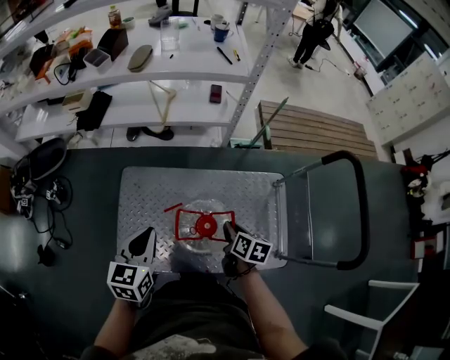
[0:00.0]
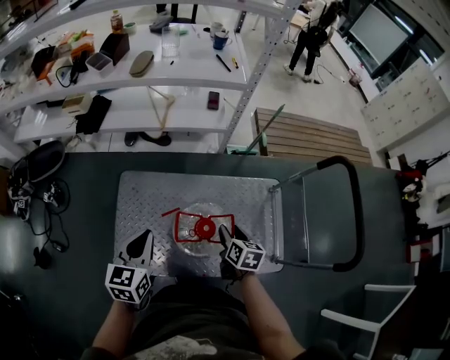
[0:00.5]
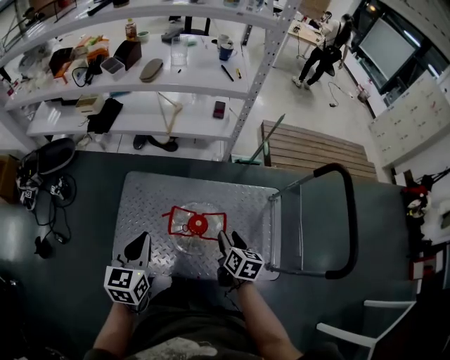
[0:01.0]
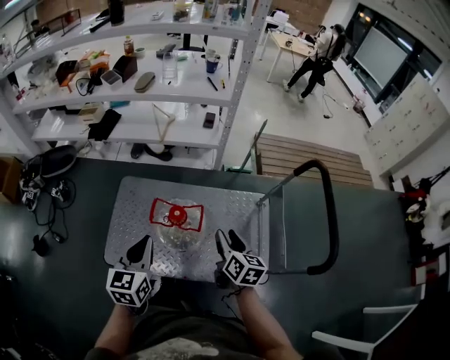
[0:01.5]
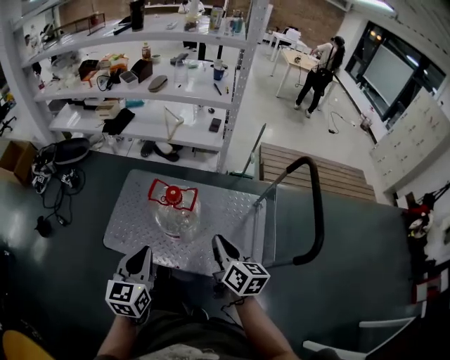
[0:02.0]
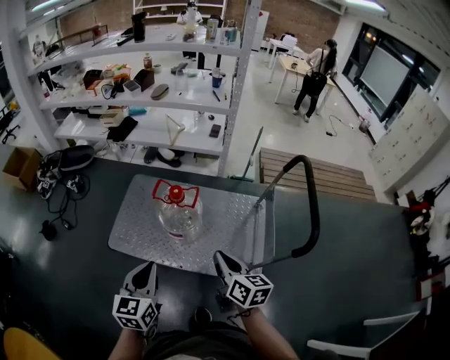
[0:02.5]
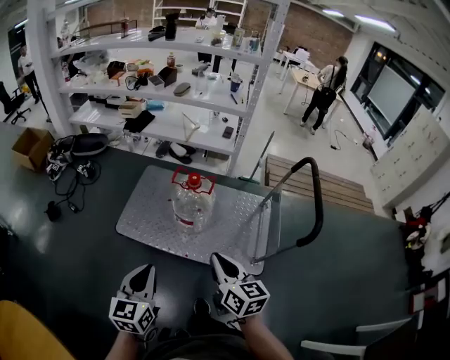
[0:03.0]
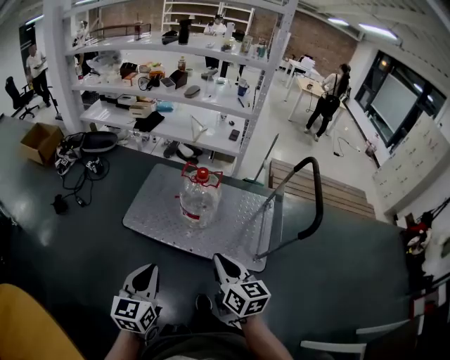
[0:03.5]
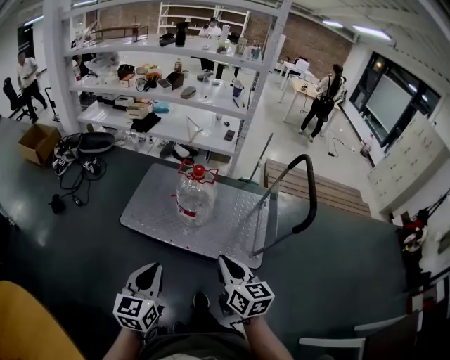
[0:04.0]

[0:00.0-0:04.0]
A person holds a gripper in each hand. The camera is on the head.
0:00.0 to 0:02.0: The right gripper moves backward, upward and to the right, approximately 30 cm, rotates roughly 30 degrees, and opens, then closes once more. The left gripper is displaced backward and to the right by approximately 30 cm.
0:02.0 to 0:04.0: The grippers both shift backward by some 30 cm.

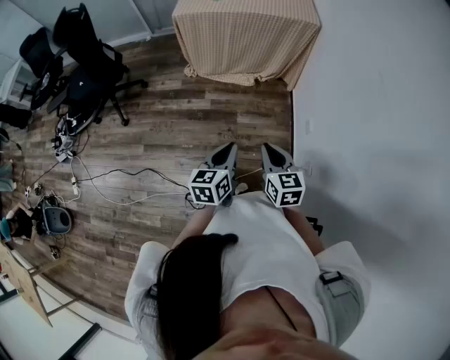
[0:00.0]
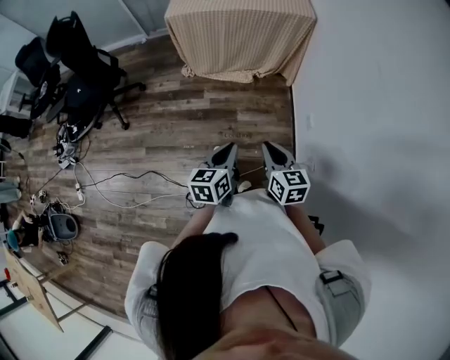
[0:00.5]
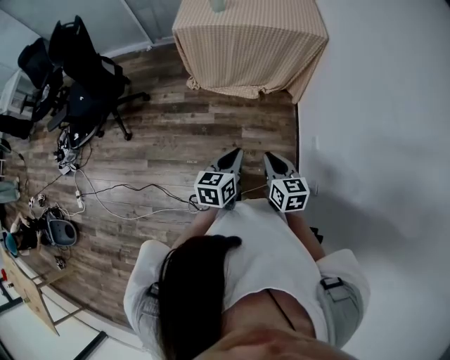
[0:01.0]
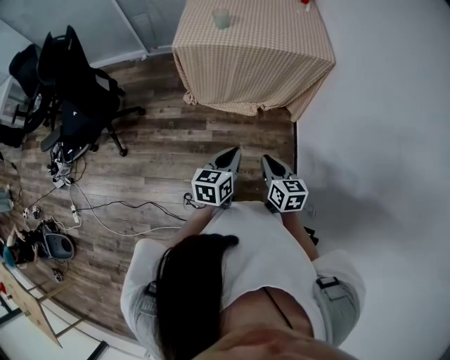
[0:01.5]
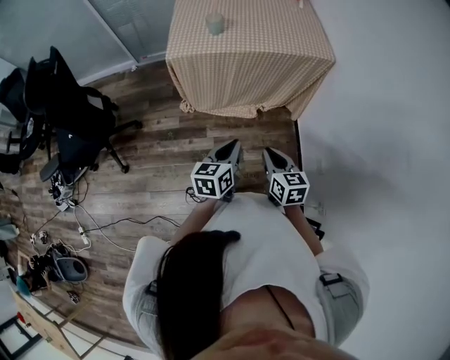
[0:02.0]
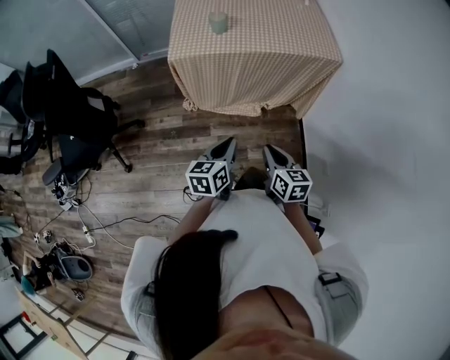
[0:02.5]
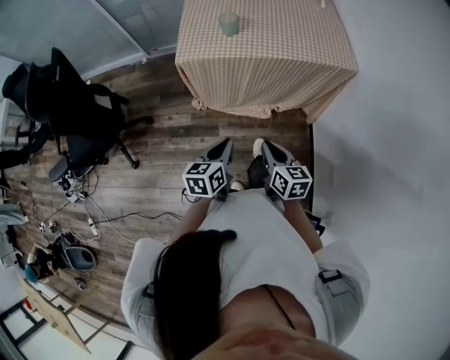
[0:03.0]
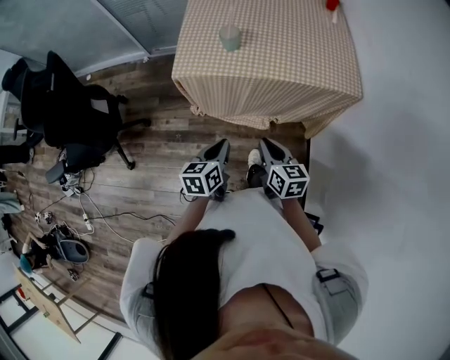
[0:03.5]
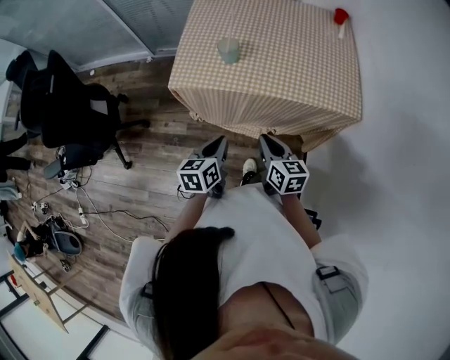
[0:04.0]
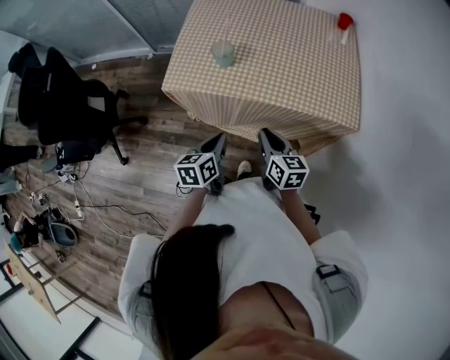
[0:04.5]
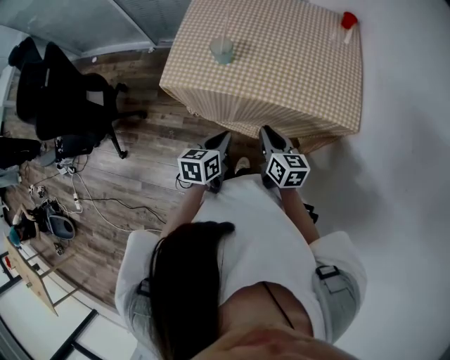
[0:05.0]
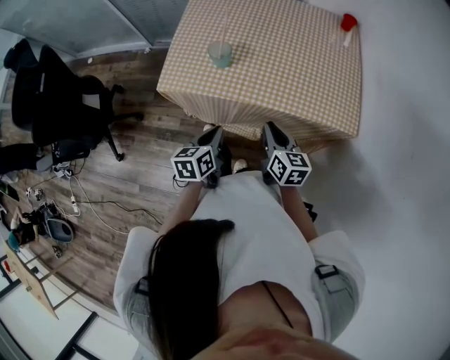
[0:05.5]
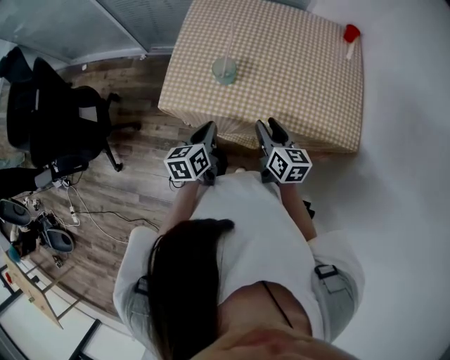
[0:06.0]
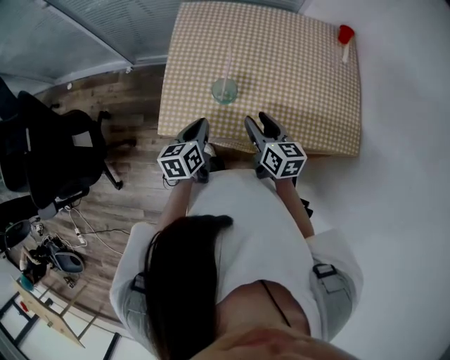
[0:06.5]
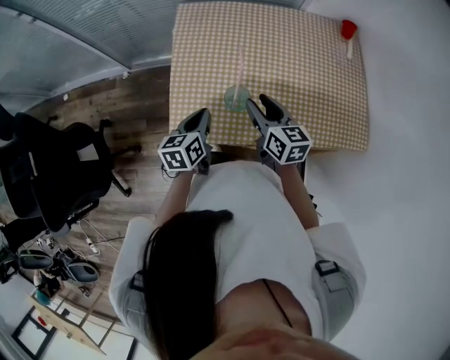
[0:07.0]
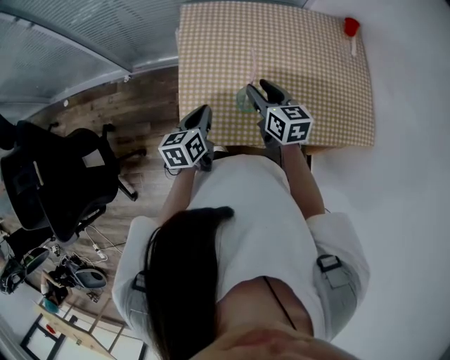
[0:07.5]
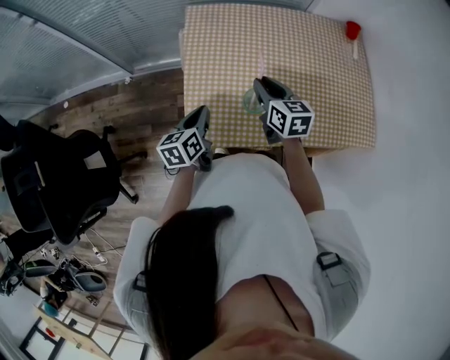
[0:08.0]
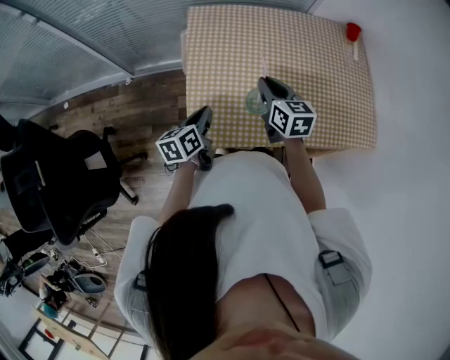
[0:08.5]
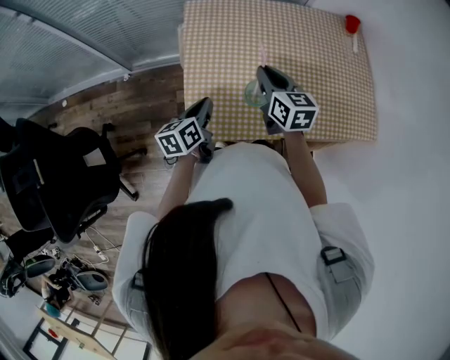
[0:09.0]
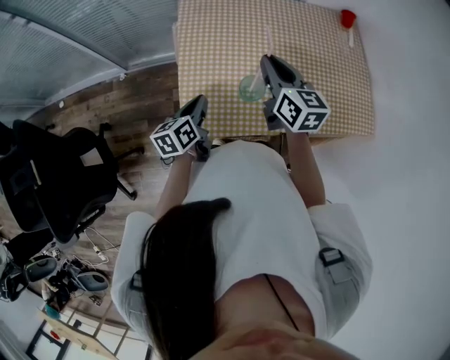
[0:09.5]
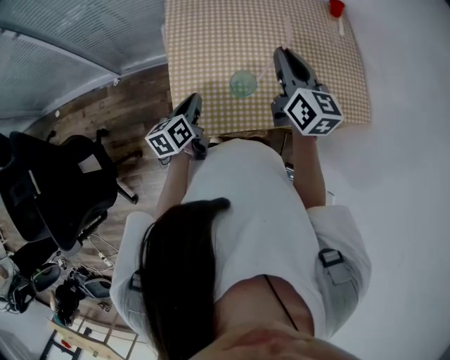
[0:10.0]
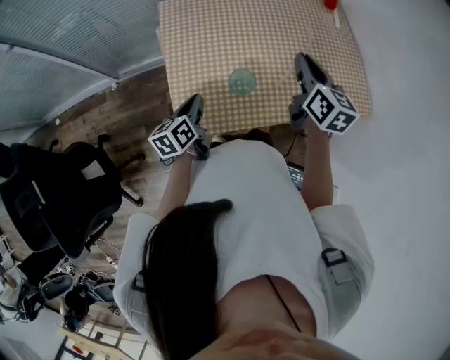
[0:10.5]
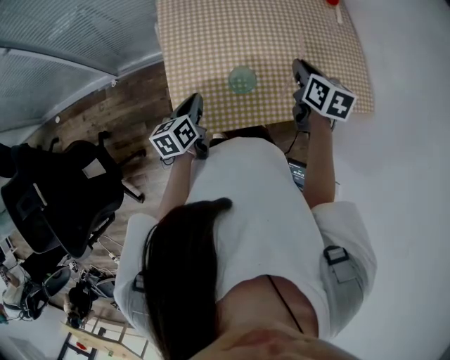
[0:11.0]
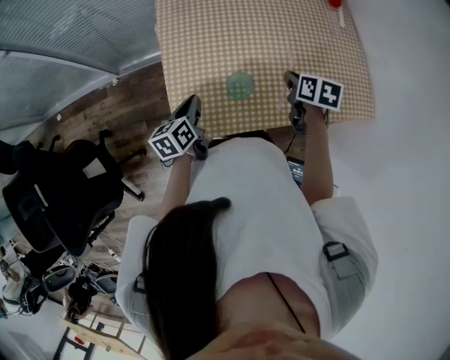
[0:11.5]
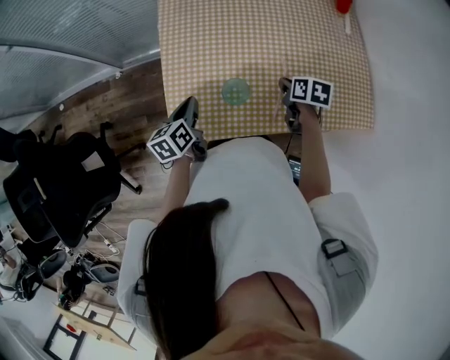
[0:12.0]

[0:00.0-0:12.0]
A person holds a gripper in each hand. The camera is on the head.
0:00.0 to 0:02.0: The two grippers go some 30 cm forward.
0:02.0 to 0:04.0: Both grippers travel together forward, roughly 25 cm.
0:04.0 to 0:06.0: The grippers both shift forward by about 15 cm. The right gripper opens.
0:06.0 to 0:08.0: Both grippers travel together forward and to the left, approximately 25 cm.
0:08.0 to 0:10.0: The right gripper shifts roughly 15 cm upward and to the right, and swivels about 20 degrees.
0:10.0 to 0:12.0: The right gripper travels downward by roughly 20 cm, and tilts its fingers approximately 50 degrees downward.

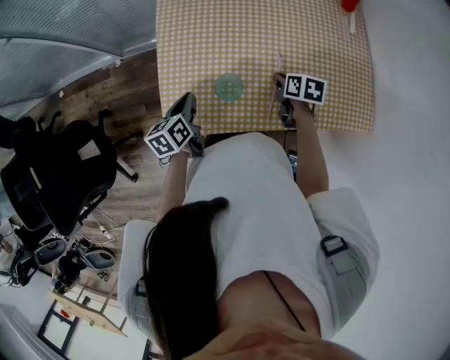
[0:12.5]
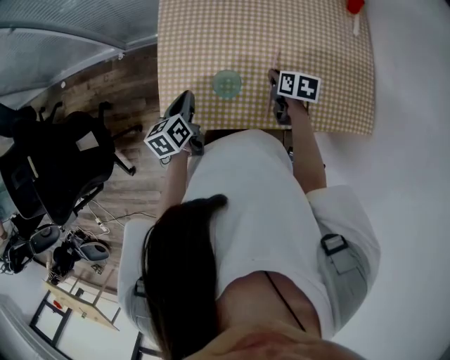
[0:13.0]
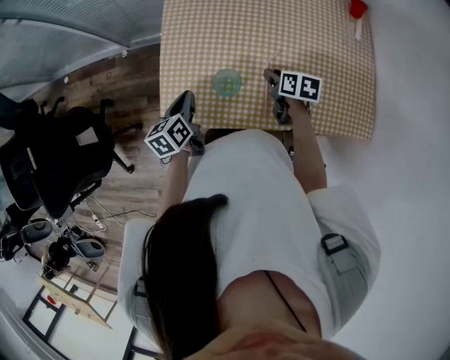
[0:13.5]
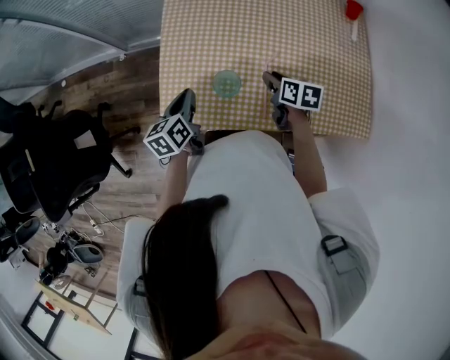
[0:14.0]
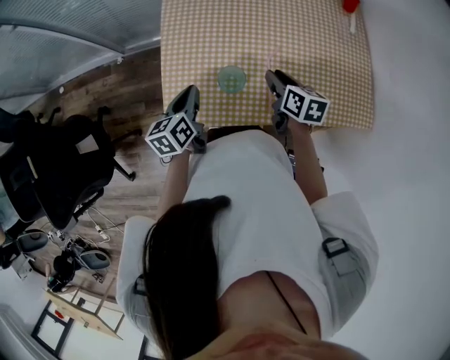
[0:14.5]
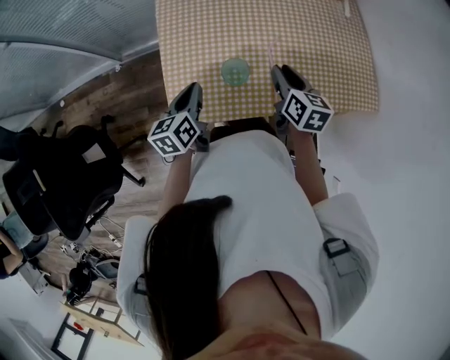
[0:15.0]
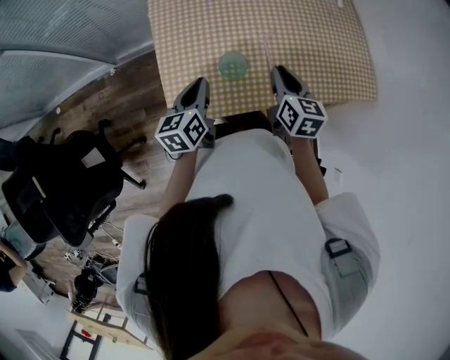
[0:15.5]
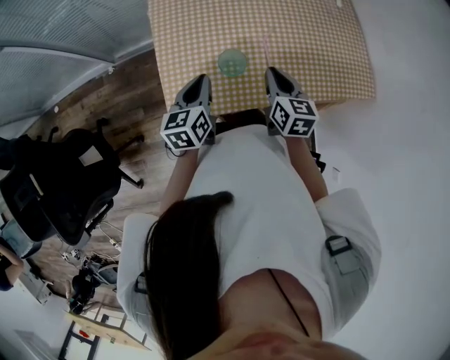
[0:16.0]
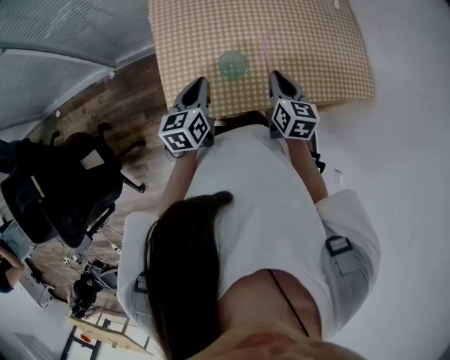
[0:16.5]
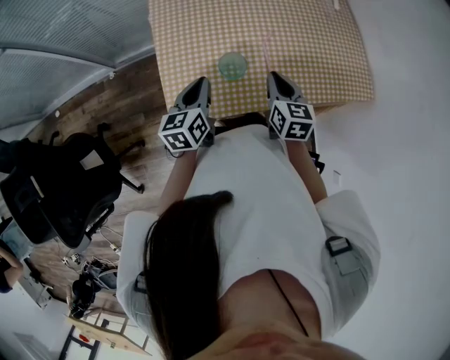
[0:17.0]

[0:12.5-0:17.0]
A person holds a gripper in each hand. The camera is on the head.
0:12.5 to 0:14.5: The right gripper travels upward by roughly 5 cm.
0:14.5 to 0:17.0: The right gripper travels backward by roughly 5 cm, and swivels some 20 degrees.

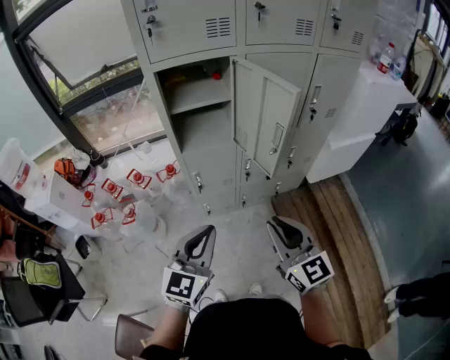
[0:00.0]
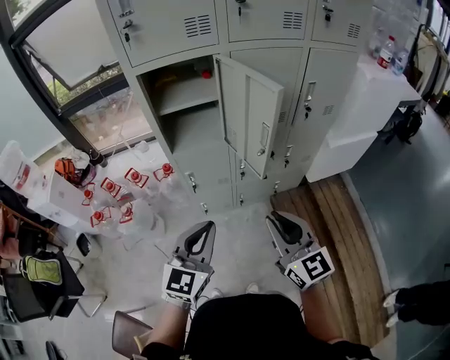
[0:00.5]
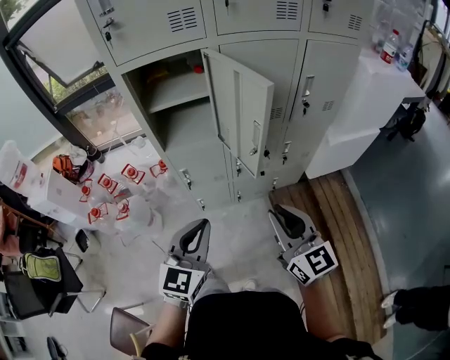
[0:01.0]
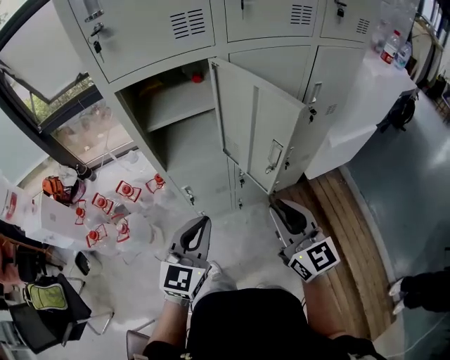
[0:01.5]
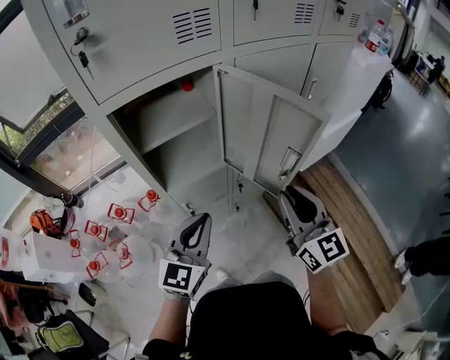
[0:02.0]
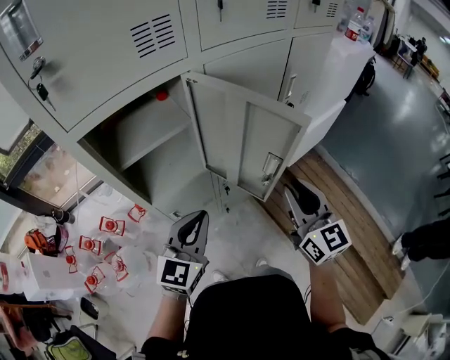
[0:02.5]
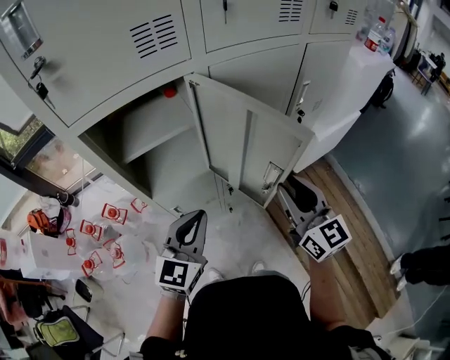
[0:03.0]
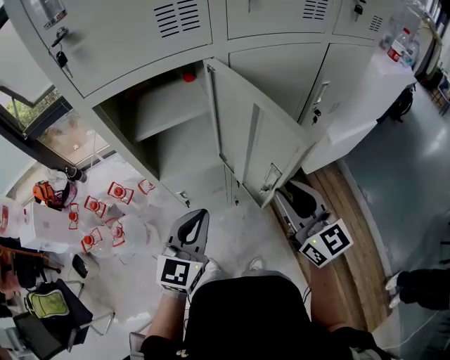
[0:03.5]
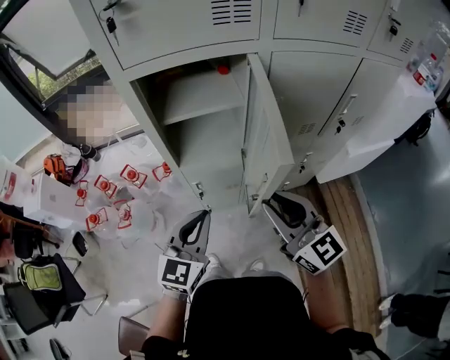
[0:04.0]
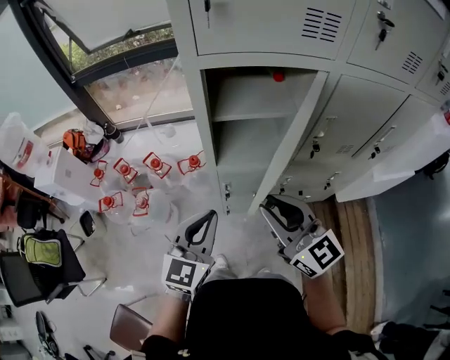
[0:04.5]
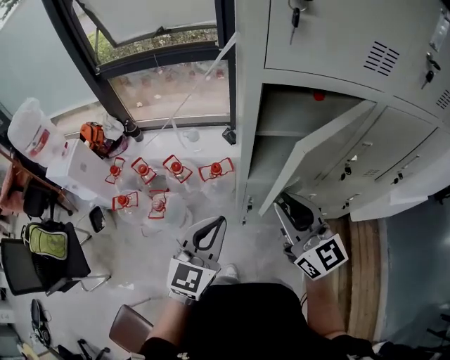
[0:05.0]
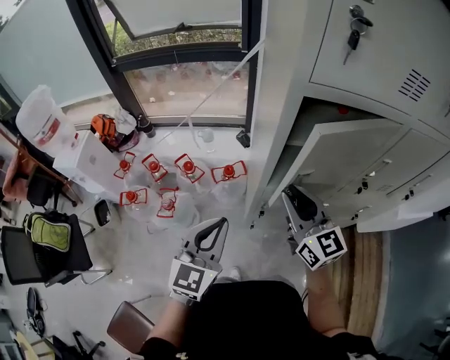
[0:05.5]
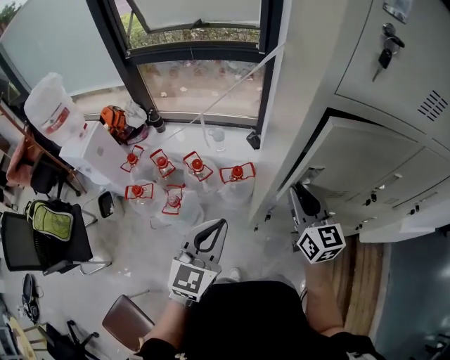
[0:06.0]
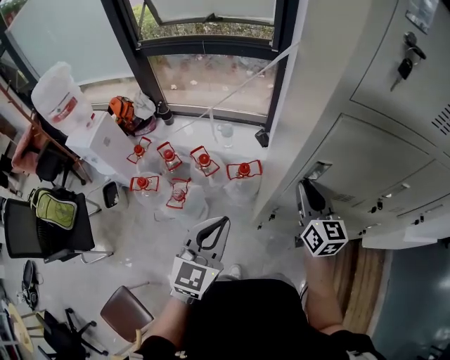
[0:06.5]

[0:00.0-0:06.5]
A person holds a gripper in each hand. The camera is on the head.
0:00.0 to 0:02.0: Both grippers travel together forward, some 20 cm.
0:02.0 to 0:04.5: The left gripper ends up some 10 cm from where it was, and rotates approximately 20 degrees. Meanwhile the right gripper moves roughly 15 cm, and rotates some 40 degrees.
0:04.5 to 0:06.5: The right gripper travels forward and downward by about 20 cm. Meanwhile the left gripper shifts roughly 15 cm to the left.
